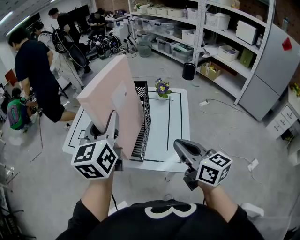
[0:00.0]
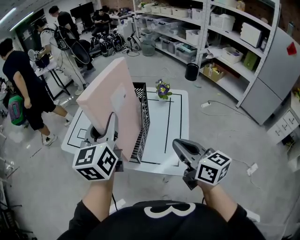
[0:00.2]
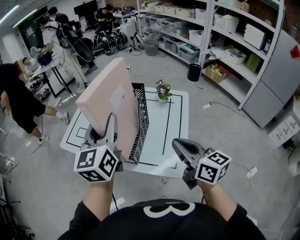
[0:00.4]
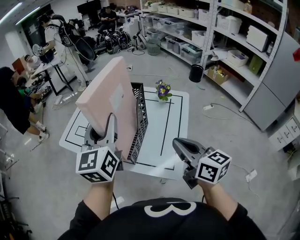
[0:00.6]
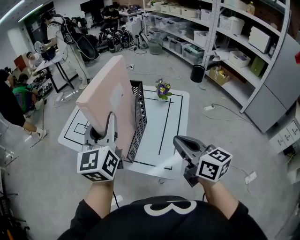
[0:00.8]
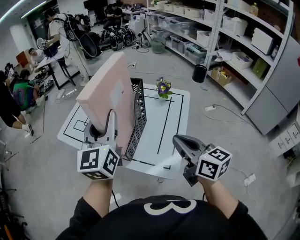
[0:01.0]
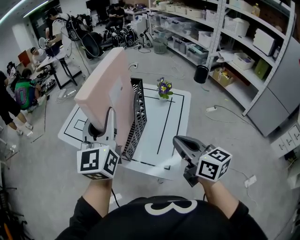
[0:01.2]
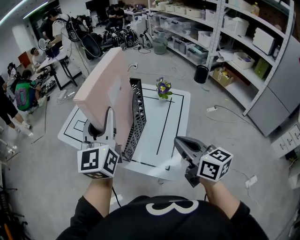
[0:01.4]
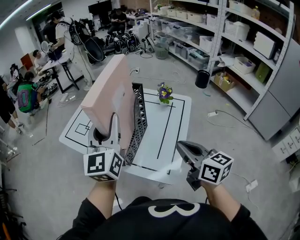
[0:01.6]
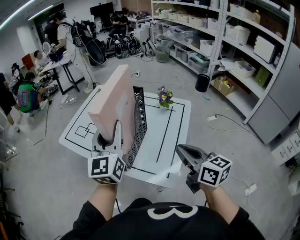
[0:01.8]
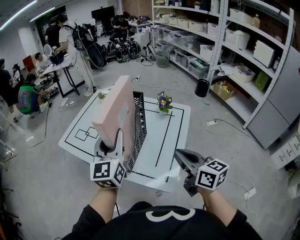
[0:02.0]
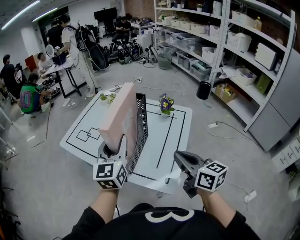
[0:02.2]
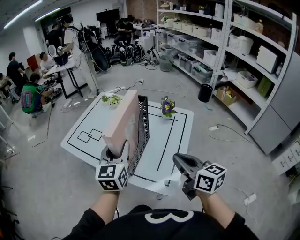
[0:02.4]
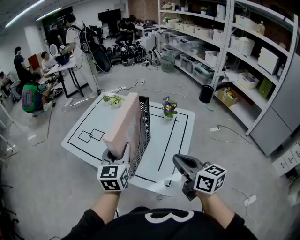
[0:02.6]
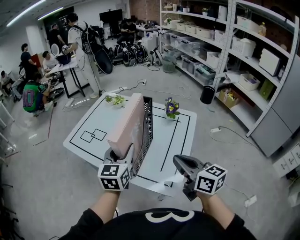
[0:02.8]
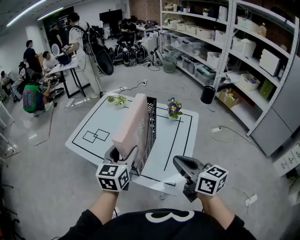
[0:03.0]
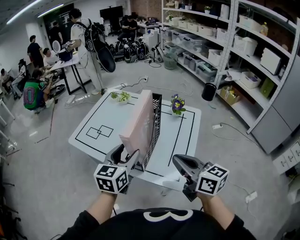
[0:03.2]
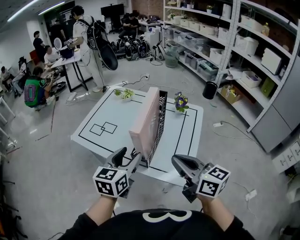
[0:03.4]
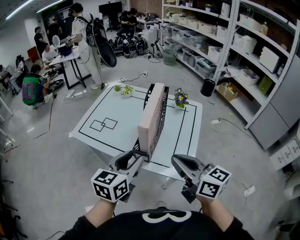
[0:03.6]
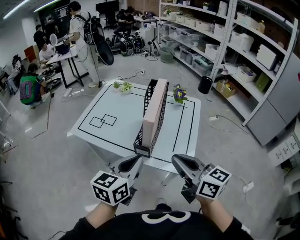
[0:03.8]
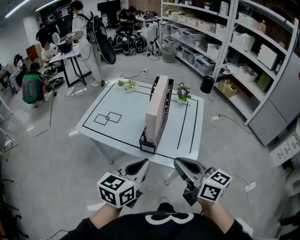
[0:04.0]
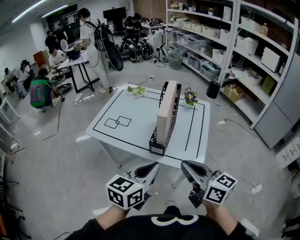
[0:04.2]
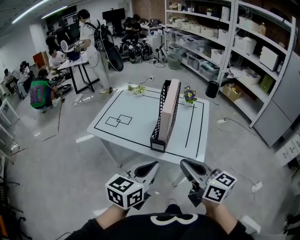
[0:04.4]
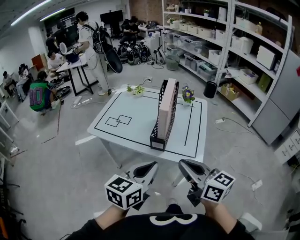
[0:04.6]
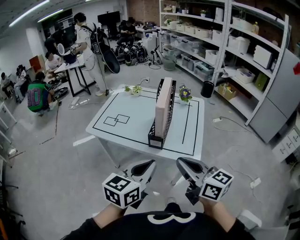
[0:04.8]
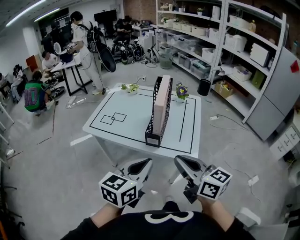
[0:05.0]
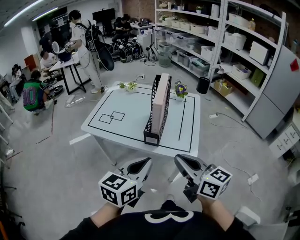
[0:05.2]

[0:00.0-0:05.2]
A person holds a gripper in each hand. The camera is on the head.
0:00.0 to 0:01.8: The left gripper moves to the right and downward, about 10 cm. The right gripper heads to the right, covering some 10 cm.
0:01.8 to 0:03.4: The right gripper is displaced to the left by some 10 cm, while the left gripper is displaced downward, backward and to the left by some 10 cm, changes its angle by some 30 degrees, and opens its fingers.
0:03.4 to 0:05.2: The left gripper heads backward, covering some 20 cm, and closes its fingers; the right gripper heads backward and to the left, covering roughly 15 cm.

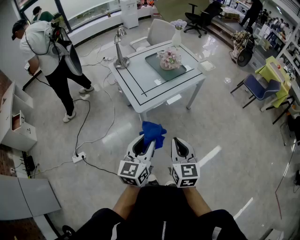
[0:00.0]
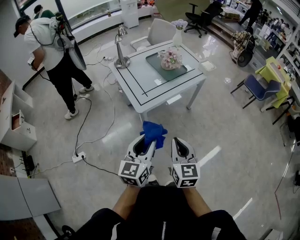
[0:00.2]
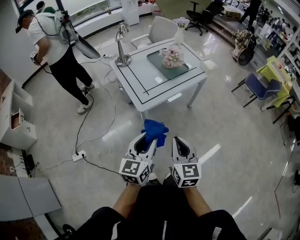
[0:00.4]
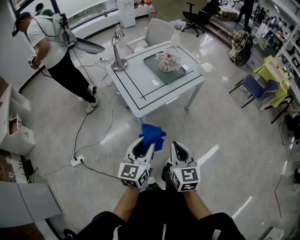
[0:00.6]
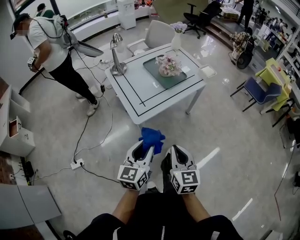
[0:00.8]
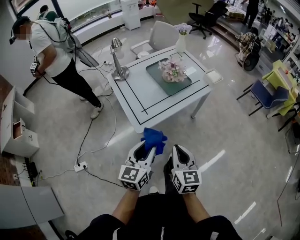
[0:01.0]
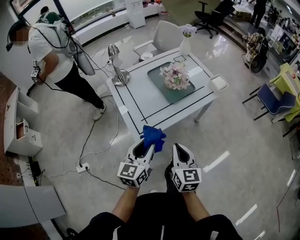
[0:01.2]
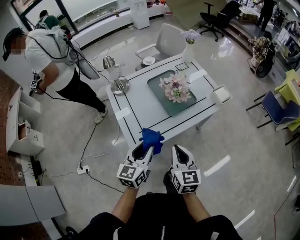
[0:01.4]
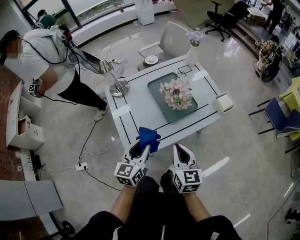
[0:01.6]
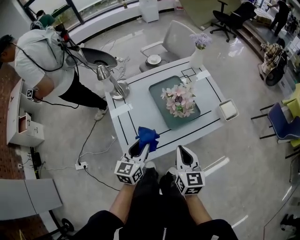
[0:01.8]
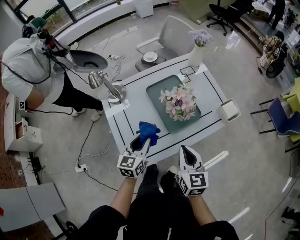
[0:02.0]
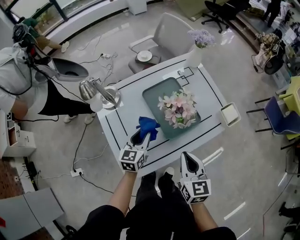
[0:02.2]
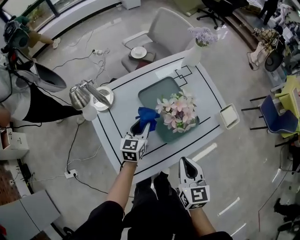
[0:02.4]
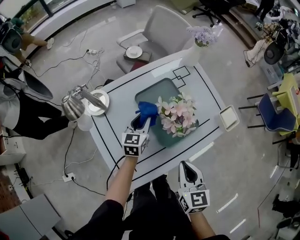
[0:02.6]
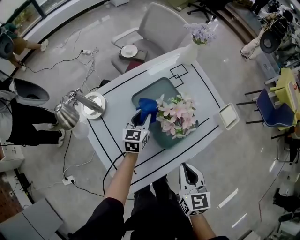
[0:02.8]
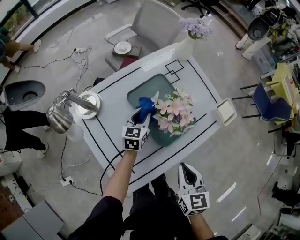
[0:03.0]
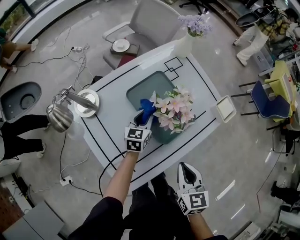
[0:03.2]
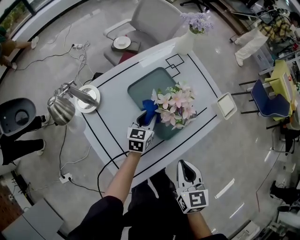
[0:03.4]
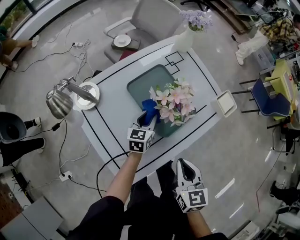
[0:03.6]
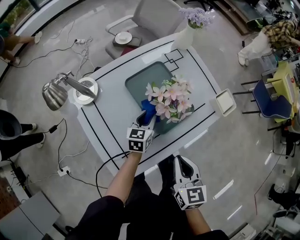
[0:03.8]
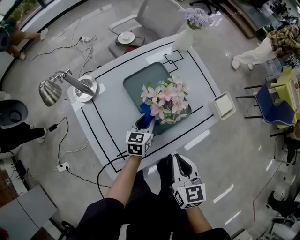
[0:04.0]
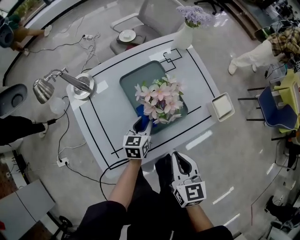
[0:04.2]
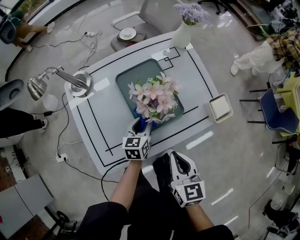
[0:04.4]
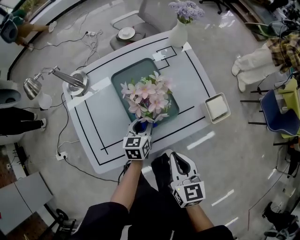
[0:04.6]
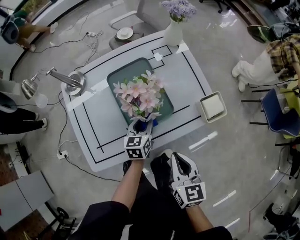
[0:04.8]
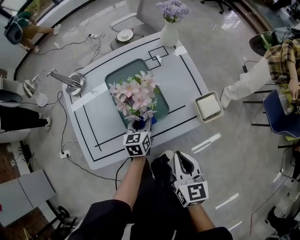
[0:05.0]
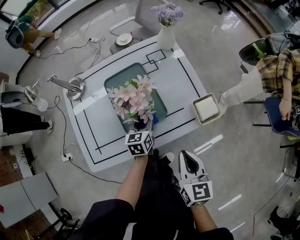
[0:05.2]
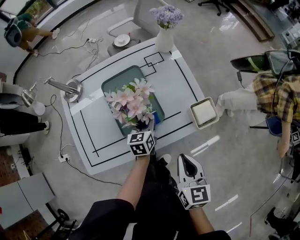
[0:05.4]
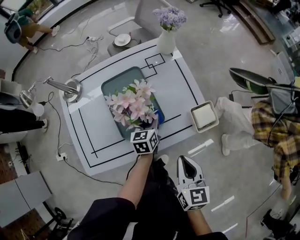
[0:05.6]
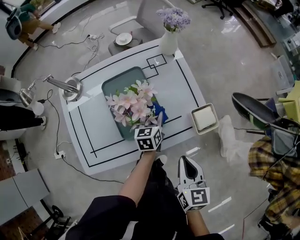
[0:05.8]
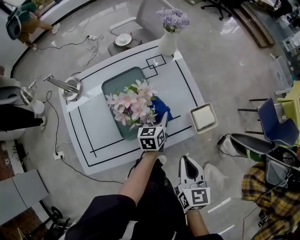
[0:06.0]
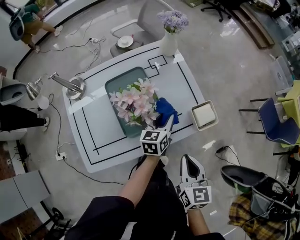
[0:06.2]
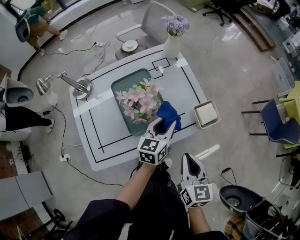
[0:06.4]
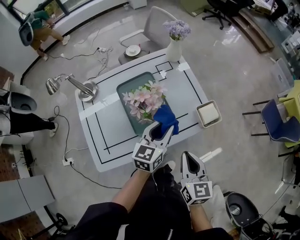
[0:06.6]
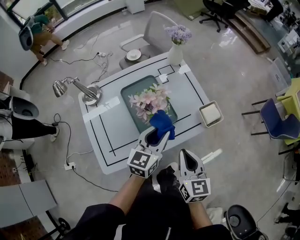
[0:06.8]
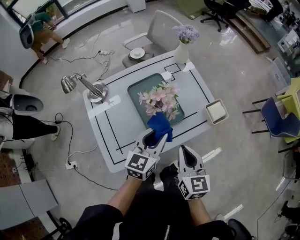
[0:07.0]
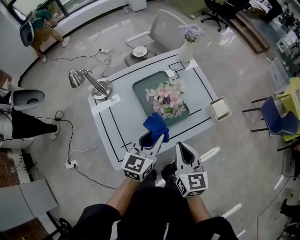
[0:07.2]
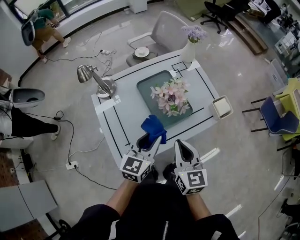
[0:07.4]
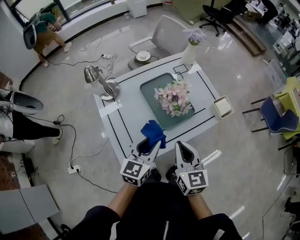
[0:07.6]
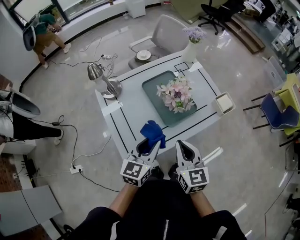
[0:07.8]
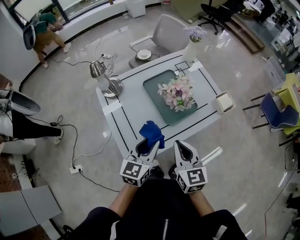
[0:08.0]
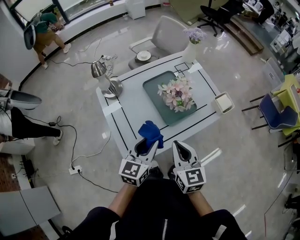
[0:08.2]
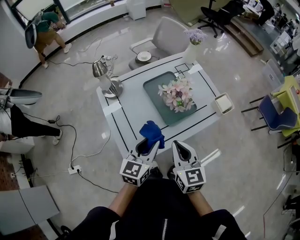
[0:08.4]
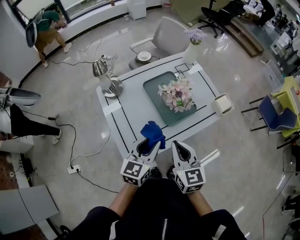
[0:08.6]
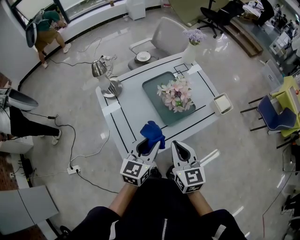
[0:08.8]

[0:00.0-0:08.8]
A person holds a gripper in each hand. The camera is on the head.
0:00.0 to 0:01.4: The grippers both shift forward by about 30 cm.
0:01.4 to 0:03.0: The right gripper goes roughly 20 cm forward and downward; the left gripper travels forward and downward by roughly 50 cm.
0:03.0 to 0:04.4: The left gripper shifts roughly 15 cm to the right and backward, while the right gripper travels to the right by approximately 10 cm.
0:04.4 to 0:05.8: The left gripper goes about 15 cm to the right and forward. Meanwhile the right gripper is displaced to the right by approximately 15 cm.
0:05.8 to 0:07.4: The left gripper is displaced backward, upward and to the left by some 35 cm, and rotates some 30 degrees, while the right gripper goes approximately 20 cm to the left.
0:07.4 to 0:08.8: The right gripper moves backward and to the left, approximately 5 cm. The left gripper goes some 5 cm backward.

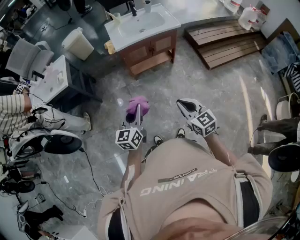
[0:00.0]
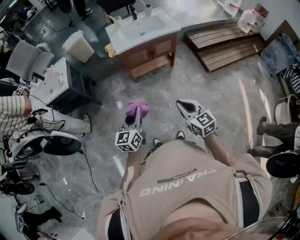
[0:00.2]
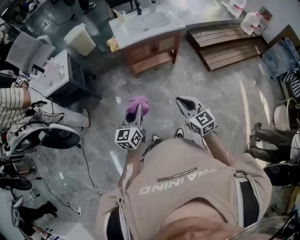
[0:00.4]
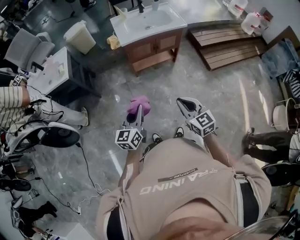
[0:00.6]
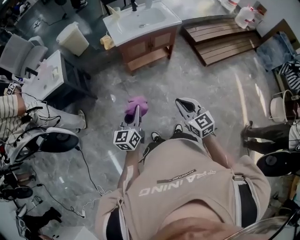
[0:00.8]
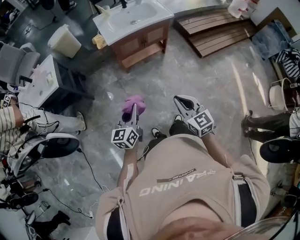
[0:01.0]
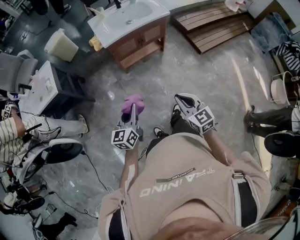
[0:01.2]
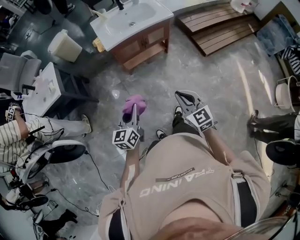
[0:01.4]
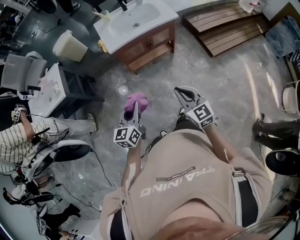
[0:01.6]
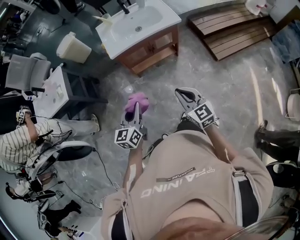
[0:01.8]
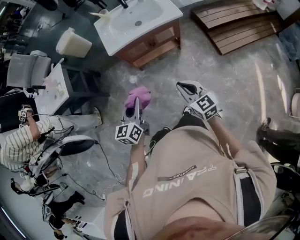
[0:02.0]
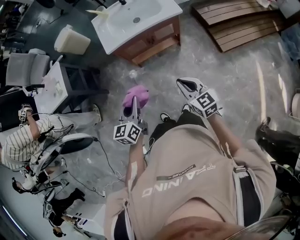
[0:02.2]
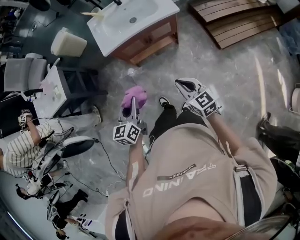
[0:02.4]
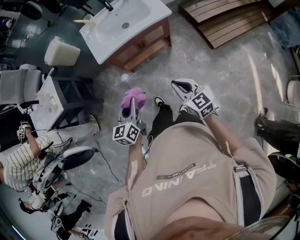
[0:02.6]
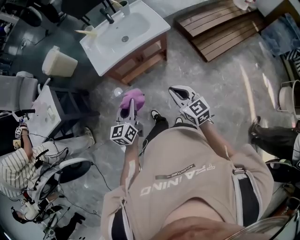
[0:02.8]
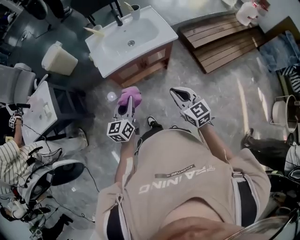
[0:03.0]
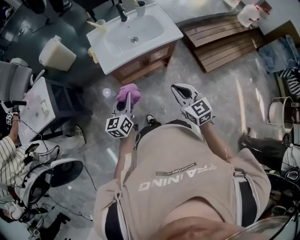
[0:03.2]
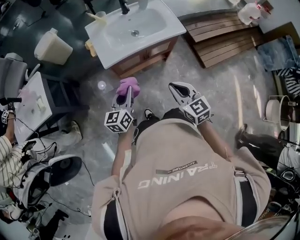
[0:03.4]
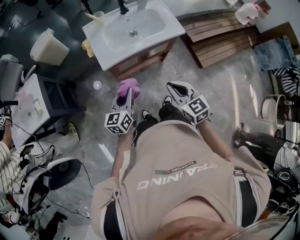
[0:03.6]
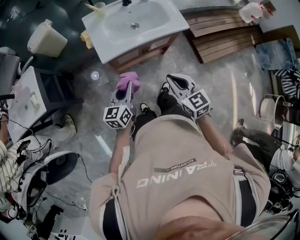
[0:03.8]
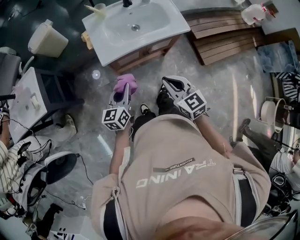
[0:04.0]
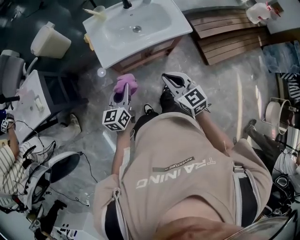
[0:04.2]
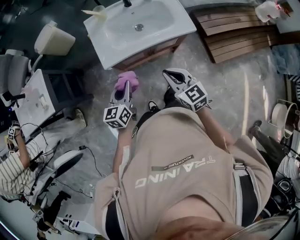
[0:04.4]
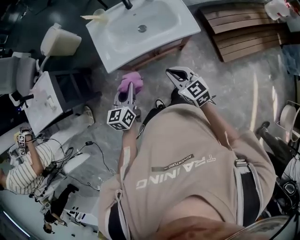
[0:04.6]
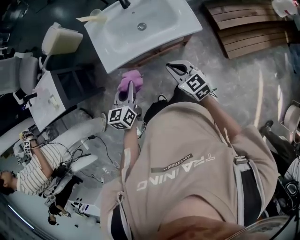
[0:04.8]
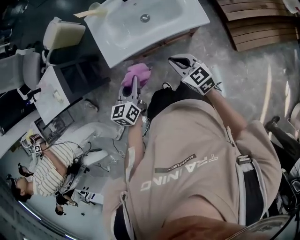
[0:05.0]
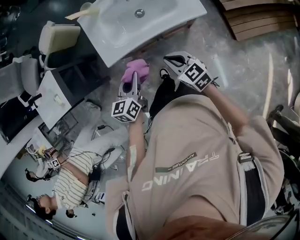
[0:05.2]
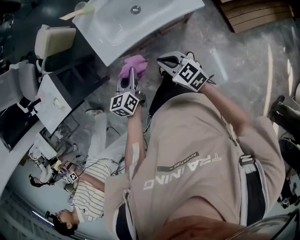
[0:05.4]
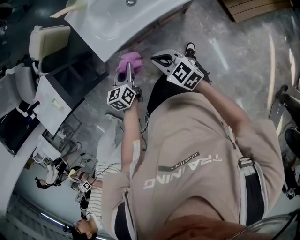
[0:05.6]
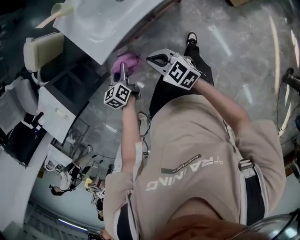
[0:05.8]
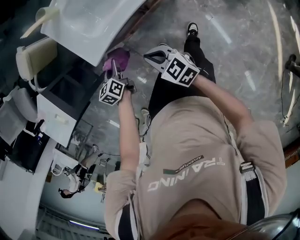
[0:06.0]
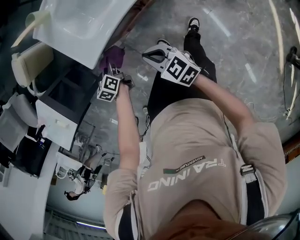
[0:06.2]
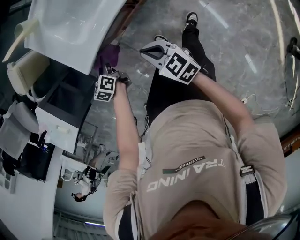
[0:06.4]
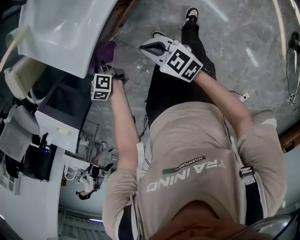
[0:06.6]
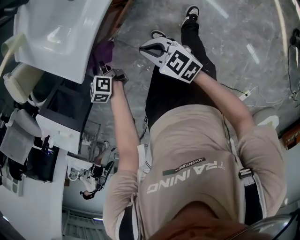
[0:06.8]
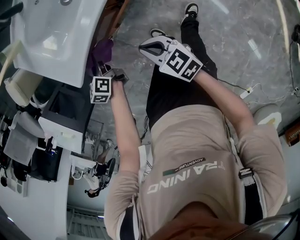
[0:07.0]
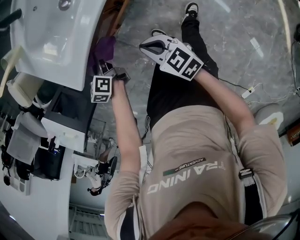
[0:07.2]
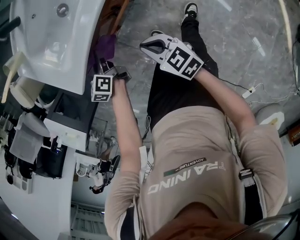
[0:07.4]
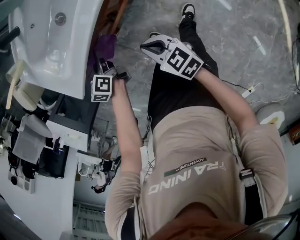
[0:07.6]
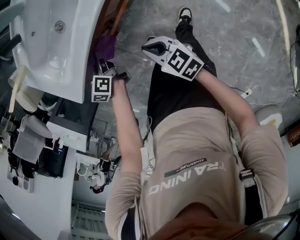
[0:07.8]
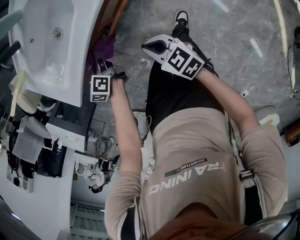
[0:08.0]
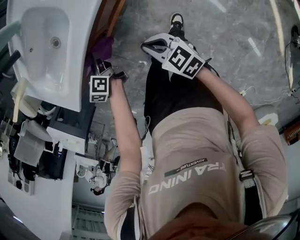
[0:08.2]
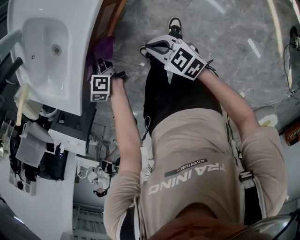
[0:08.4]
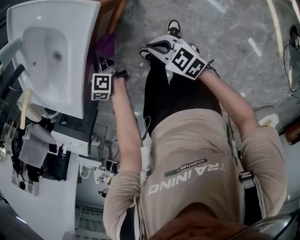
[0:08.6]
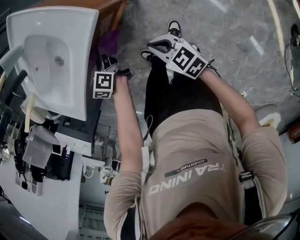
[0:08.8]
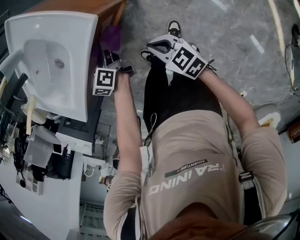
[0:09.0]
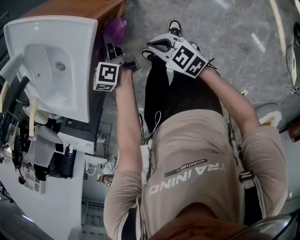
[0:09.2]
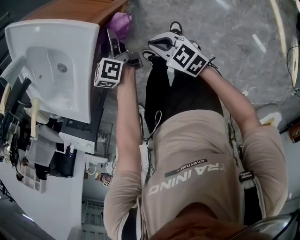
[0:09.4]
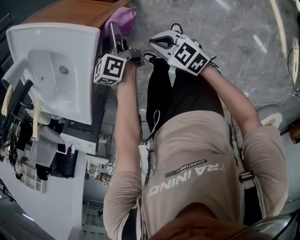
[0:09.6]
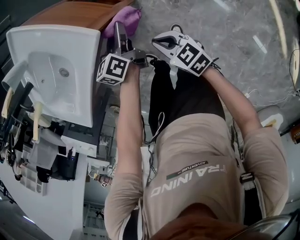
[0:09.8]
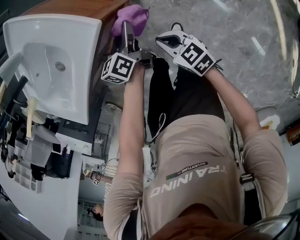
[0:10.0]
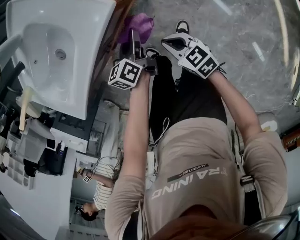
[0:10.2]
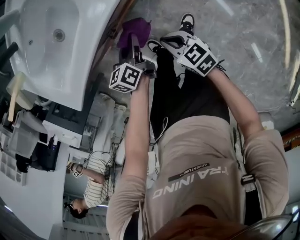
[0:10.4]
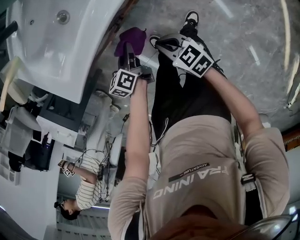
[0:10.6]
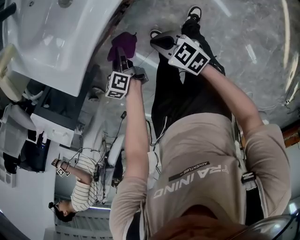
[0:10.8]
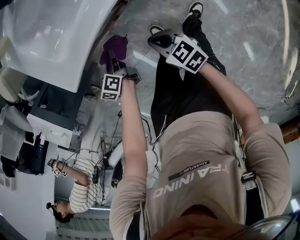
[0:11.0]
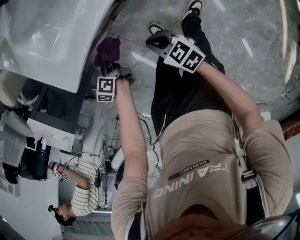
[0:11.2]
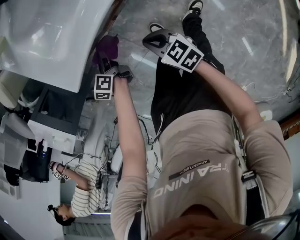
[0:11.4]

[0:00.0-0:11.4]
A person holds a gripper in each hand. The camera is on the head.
0:00.0 to 0:01.4: Both grippers travel together forward, roughly 5 cm.
0:01.4 to 0:02.8: The grippers both shift forward and to the right by some 25 cm.
0:02.8 to 0:04.2: Both grippers move forward and to the left, some 20 cm.
0:04.2 to 0:05.6: Both grippers travel together downward and forward, about 15 cm. The left gripper swivels about 20 degrees.
0:05.6 to 0:07.2: The left gripper goes approximately 20 cm downward and forward. The right gripper moves downward, approximately 20 cm, and rotates approximately 30 degrees.
0:07.2 to 0:08.6: The two grippers go about 25 cm to the right.
0:08.6 to 0:10.0: The right gripper moves to the right and downward, approximately 10 cm; the left gripper travels to the right by roughly 20 cm, and rotates some 20 degrees.
0:10.0 to 0:11.4: The left gripper shifts by about 50 cm, and rotates approximately 30 degrees; the right gripper moves roughly 35 cm.
